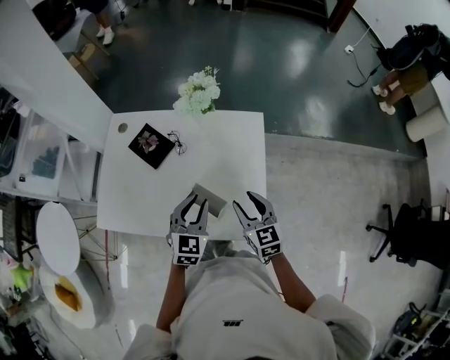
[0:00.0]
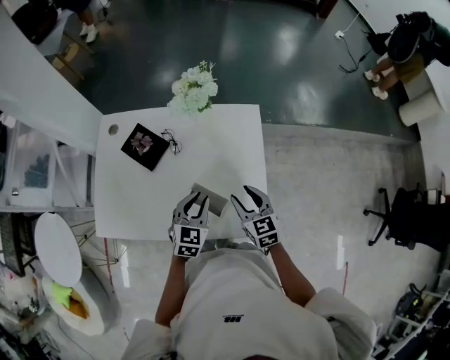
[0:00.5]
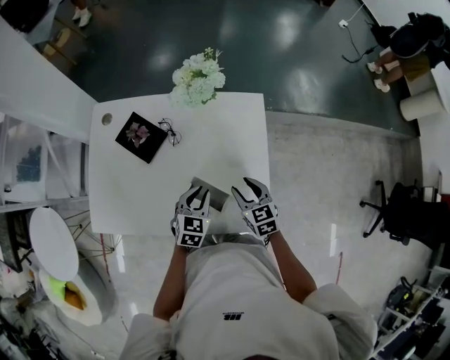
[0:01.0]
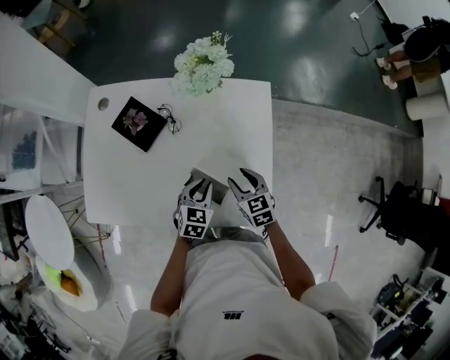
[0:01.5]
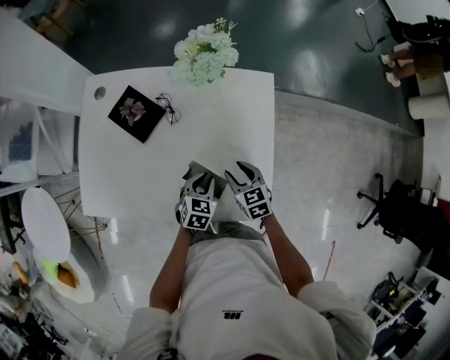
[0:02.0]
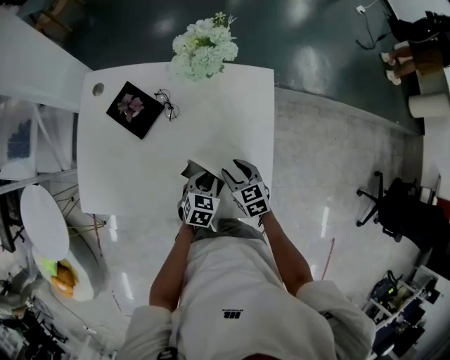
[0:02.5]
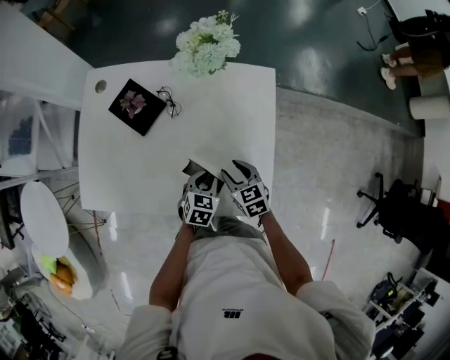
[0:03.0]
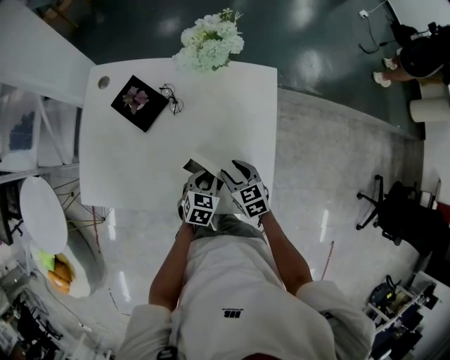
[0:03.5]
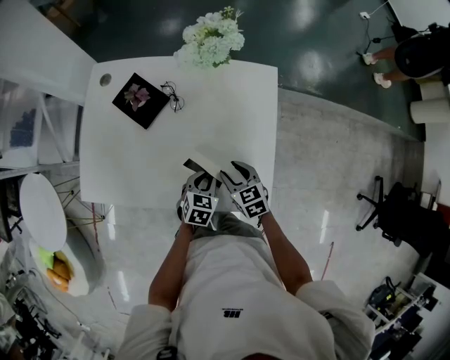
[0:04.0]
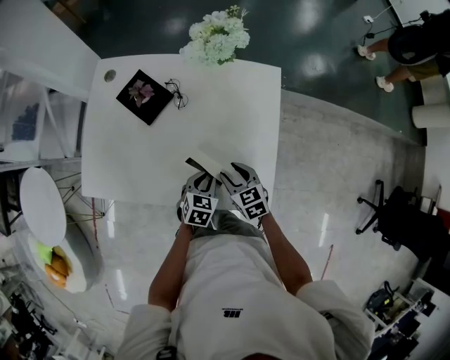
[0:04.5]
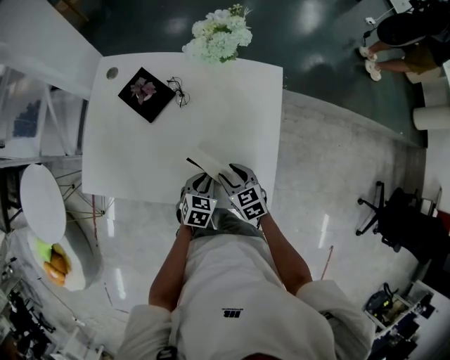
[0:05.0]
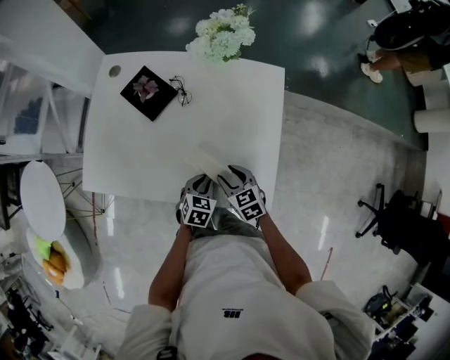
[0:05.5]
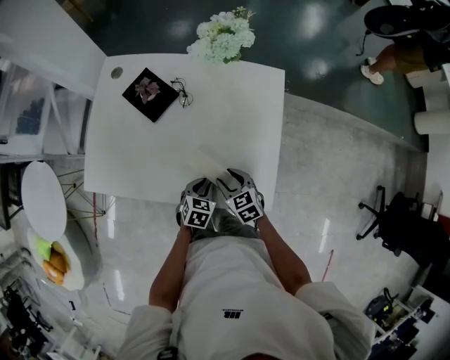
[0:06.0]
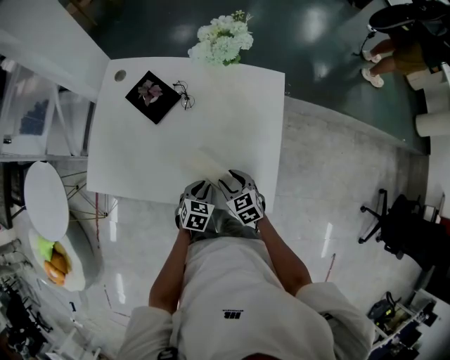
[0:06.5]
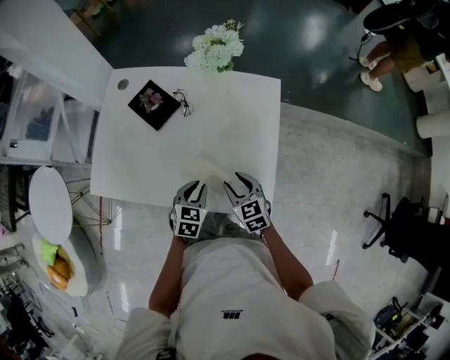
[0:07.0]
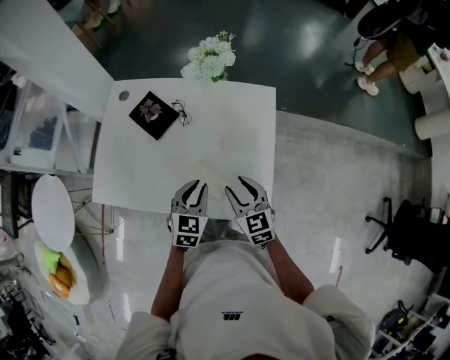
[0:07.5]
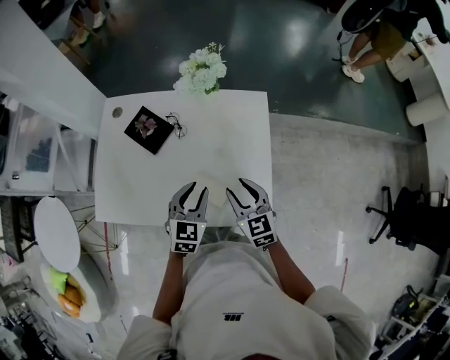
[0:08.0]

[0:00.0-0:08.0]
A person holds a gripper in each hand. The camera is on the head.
0:00.0 to 0:02.0: Both grippers travel together downward, about 20 cm. The left gripper swivels about 30 degrees.
0:02.0 to 0:04.0: The grippers make only small movements.
0:04.0 to 0:06.0: The left gripper moves approximately 5 cm. The right gripper moves approximately 5 cm.
0:06.0 to 0:08.0: The grippers both shift upward by roughly 20 cm. The left gripper rotates approximately 30 degrees; the right gripper changes its angle by about 20 degrees.

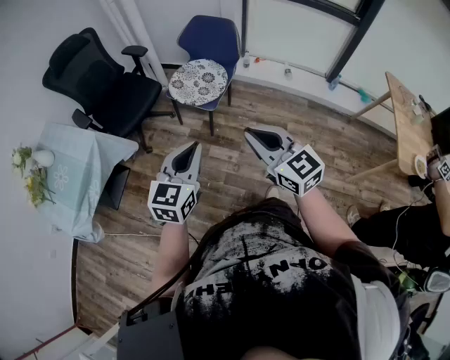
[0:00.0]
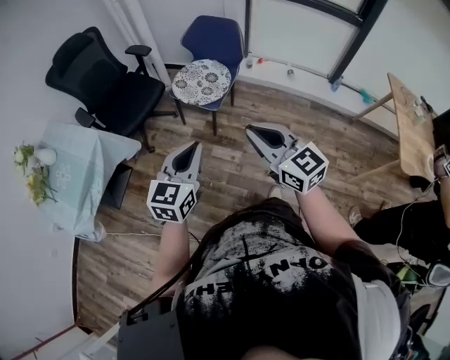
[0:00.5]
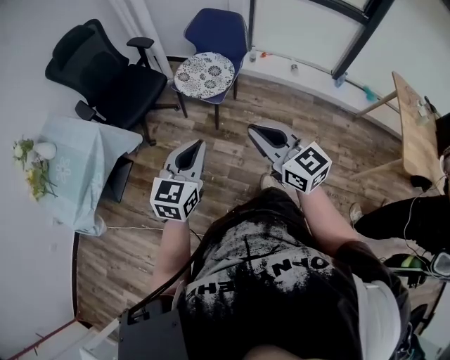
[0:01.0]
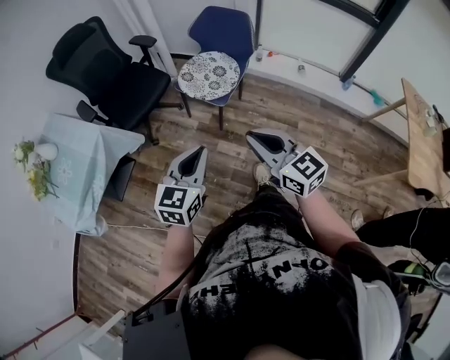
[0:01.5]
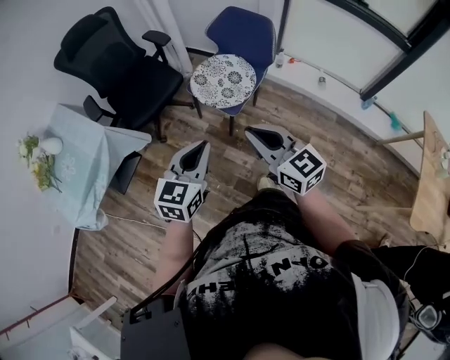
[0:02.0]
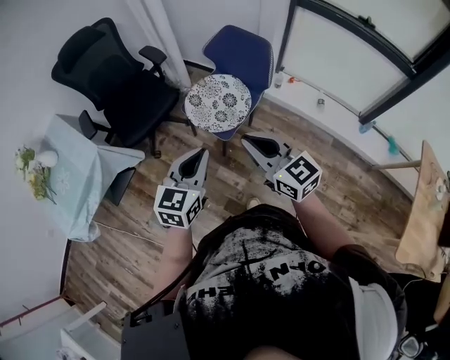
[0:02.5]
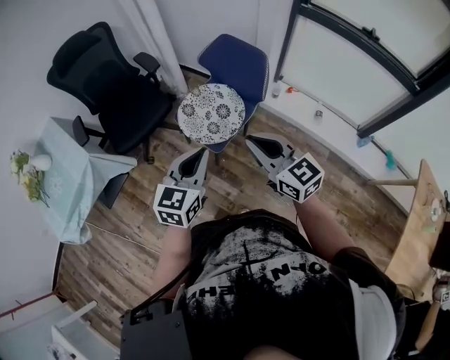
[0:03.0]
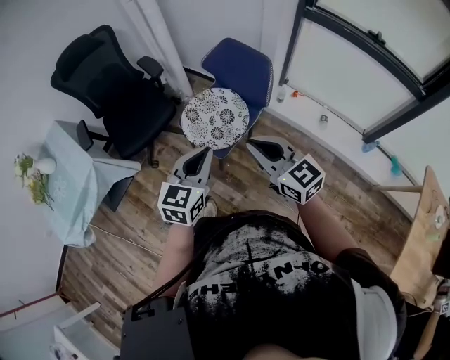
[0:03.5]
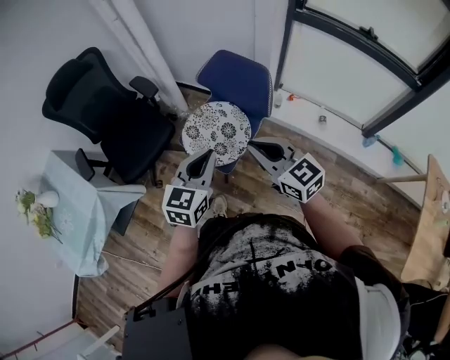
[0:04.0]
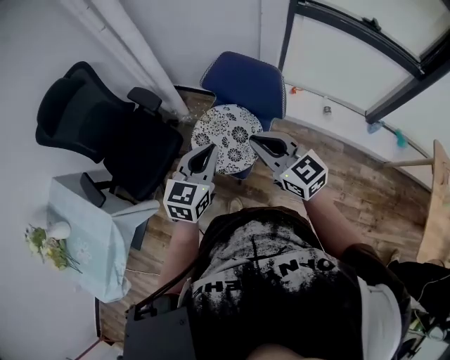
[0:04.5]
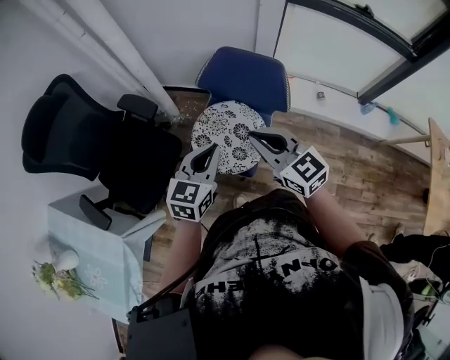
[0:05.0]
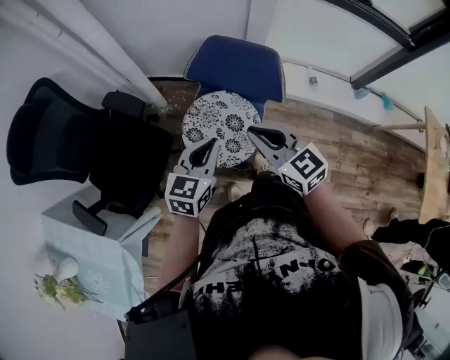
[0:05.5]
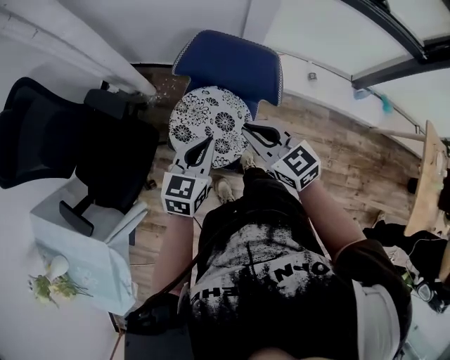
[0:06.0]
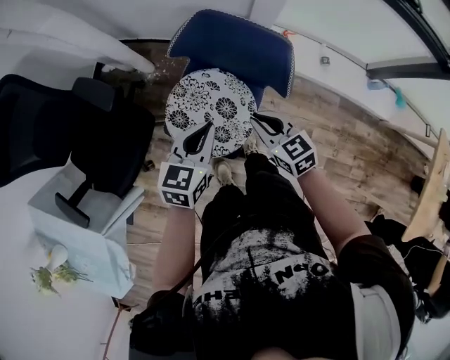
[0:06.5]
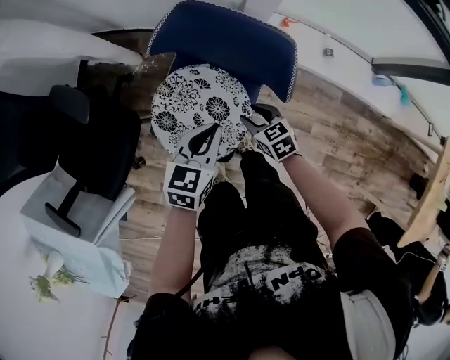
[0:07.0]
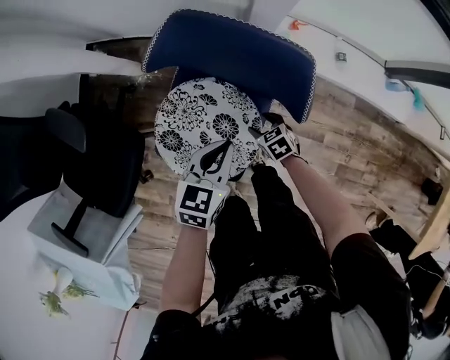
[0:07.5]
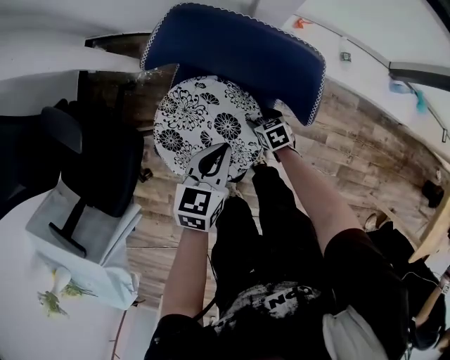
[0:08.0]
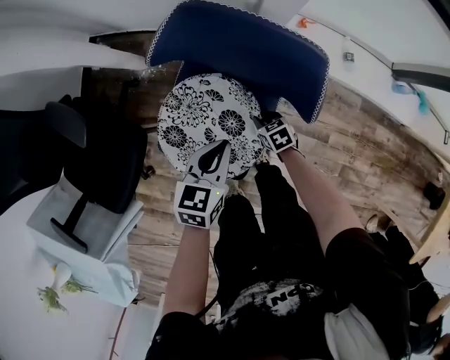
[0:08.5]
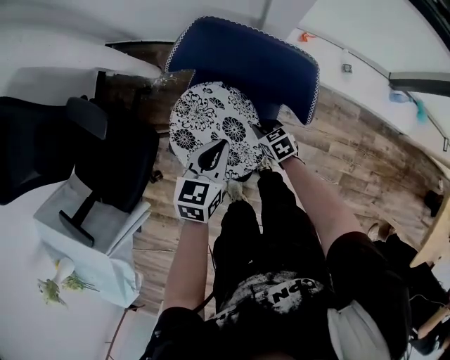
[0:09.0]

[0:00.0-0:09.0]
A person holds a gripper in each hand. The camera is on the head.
0:00.0 to 0:02.0: Both grippers travel together forward, roughly 15 cm.
0:02.0 to 0:04.5: The grippers both shift forward by roughly 30 cm.
0:04.5 to 0:07.0: The left gripper moves downward and forward, about 25 cm, and turns by about 30 degrees. The right gripper heads downward, covering roughly 40 cm, angles its fingers downward, by approximately 40 degrees, and opens.
0:07.0 to 0:09.0: The right gripper moves downward, approximately 10 cm, and closes.

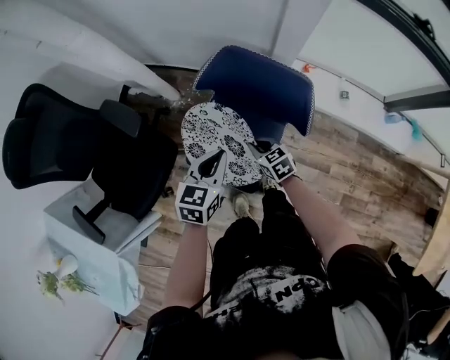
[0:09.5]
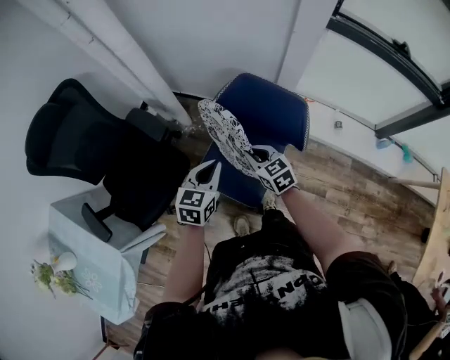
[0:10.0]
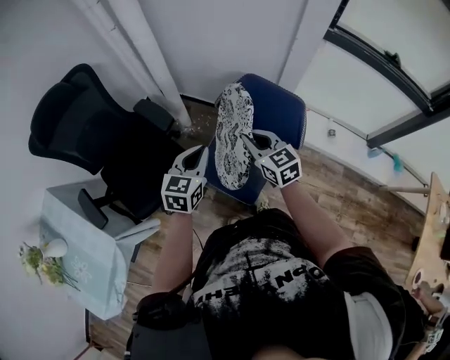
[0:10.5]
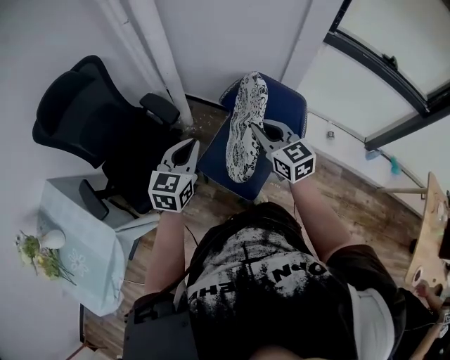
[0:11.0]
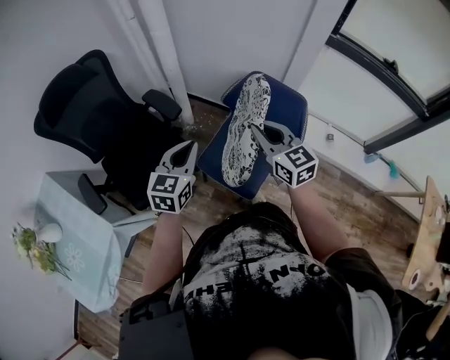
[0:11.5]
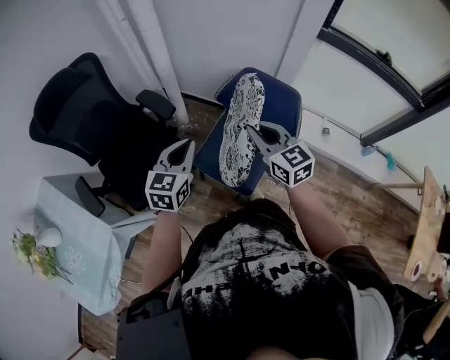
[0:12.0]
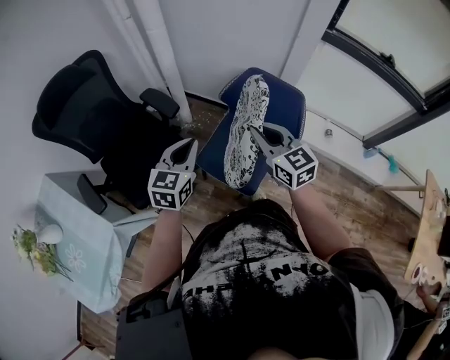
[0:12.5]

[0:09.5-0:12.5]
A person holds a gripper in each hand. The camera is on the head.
0:09.5 to 0:11.0: The right gripper moves upward, roughly 35 cm, and swivels about 30 degrees. Meanwhile the left gripper shifts some 20 cm upward and to the left, and swivels roughly 20 degrees.
0:11.0 to 0:12.5: There are only small adjustments of the grippers.

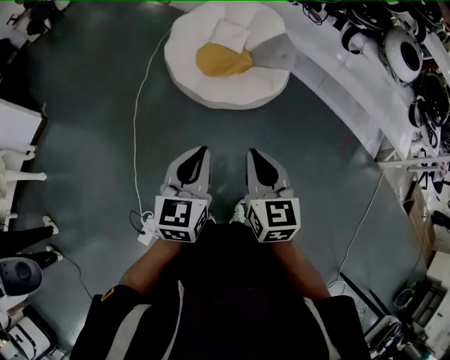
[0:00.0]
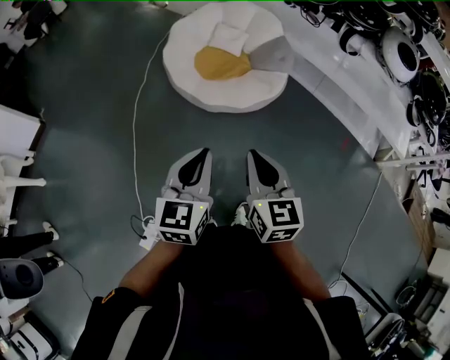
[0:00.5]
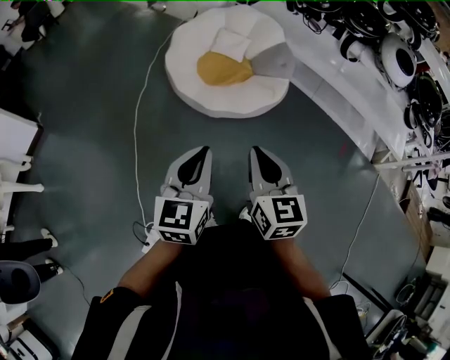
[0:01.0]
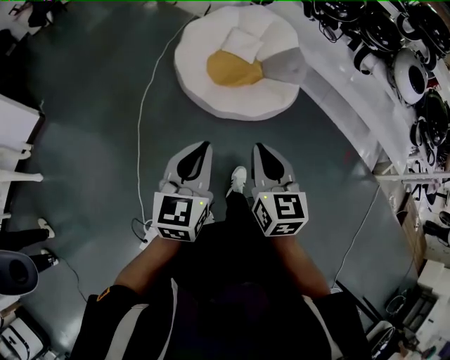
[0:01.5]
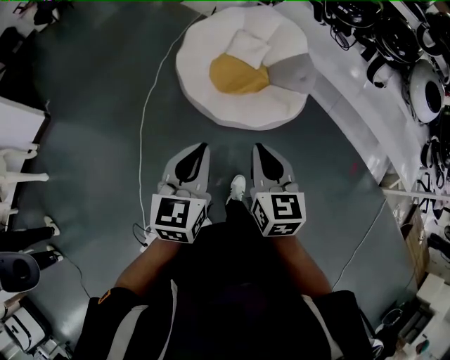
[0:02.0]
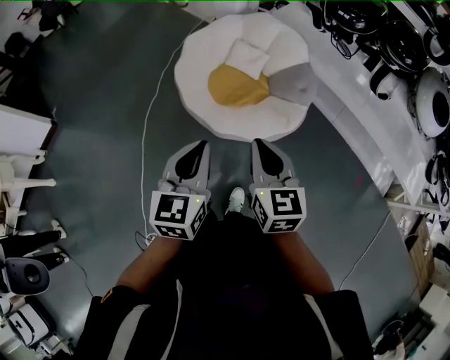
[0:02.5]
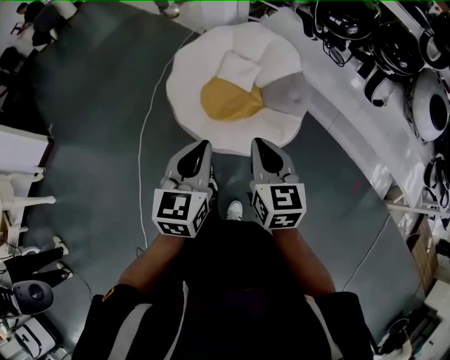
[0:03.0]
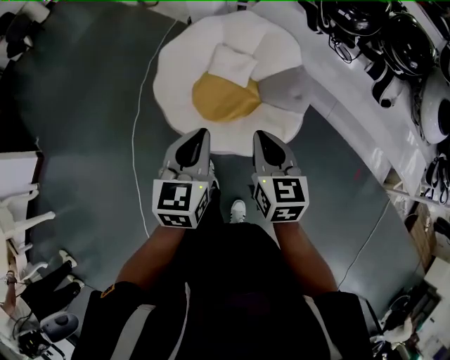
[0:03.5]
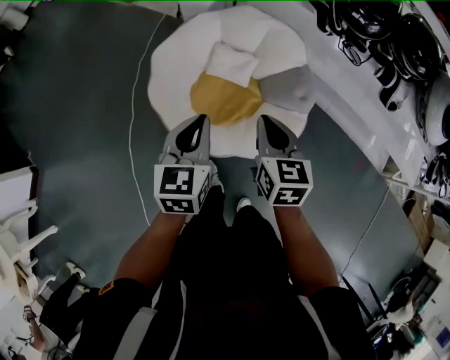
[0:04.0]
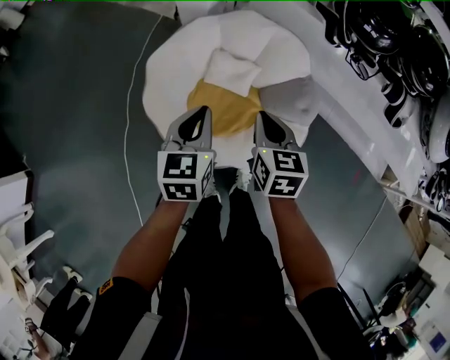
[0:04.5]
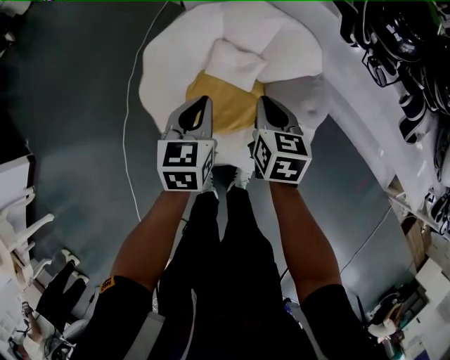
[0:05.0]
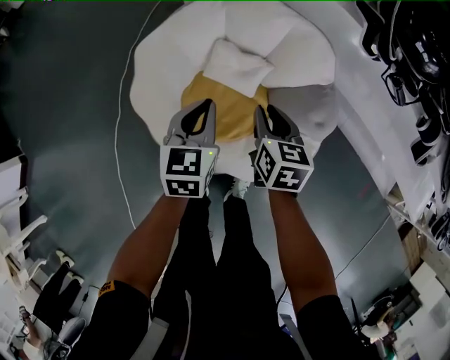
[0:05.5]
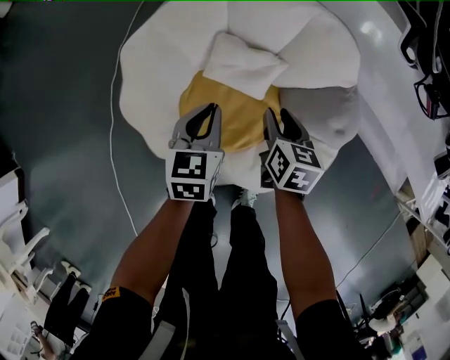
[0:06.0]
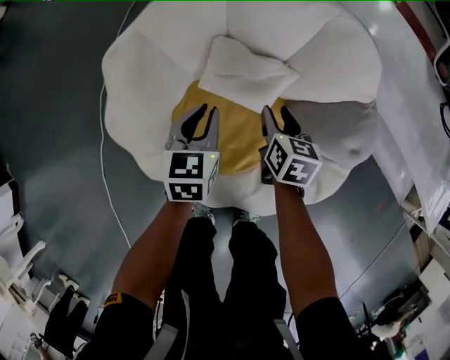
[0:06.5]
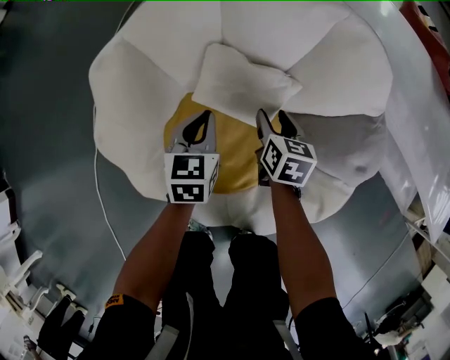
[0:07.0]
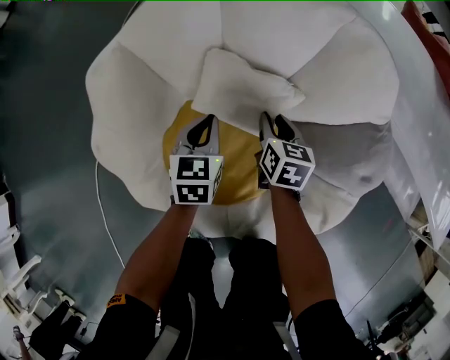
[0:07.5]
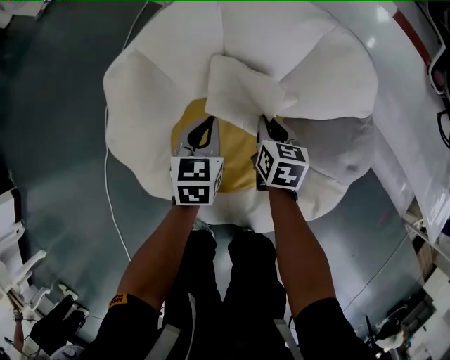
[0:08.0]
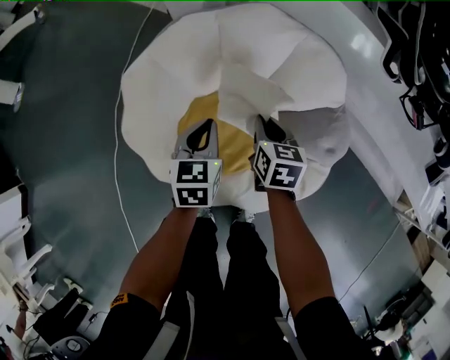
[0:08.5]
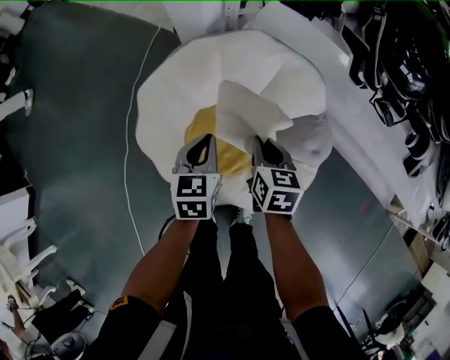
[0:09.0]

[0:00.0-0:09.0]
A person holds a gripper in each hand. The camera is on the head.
0:00.0 to 0:02.0: The grippers both shift forward by roughly 15 cm.
0:02.0 to 0:04.5: Both grippers are carried forward, approximately 50 cm.
0:04.5 to 0:07.0: Both grippers travel together downward and forward, some 50 cm. The right gripper opens up.
0:07.0 to 0:09.0: The grippers both shift upward by approximately 30 cm. The right gripper closes up.
